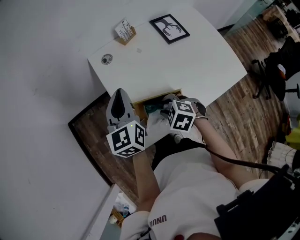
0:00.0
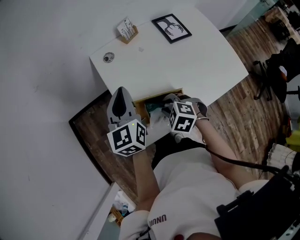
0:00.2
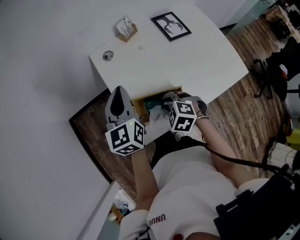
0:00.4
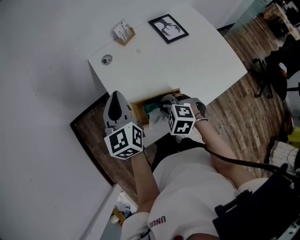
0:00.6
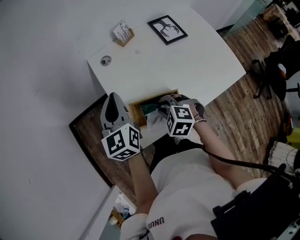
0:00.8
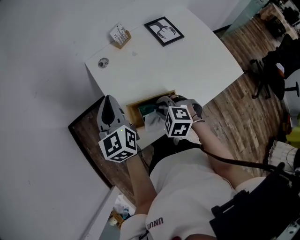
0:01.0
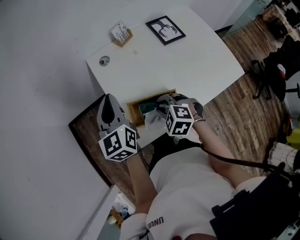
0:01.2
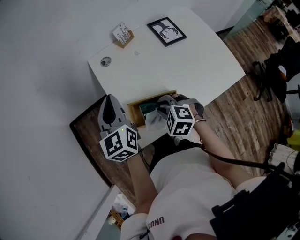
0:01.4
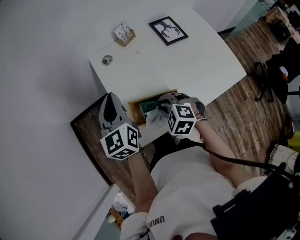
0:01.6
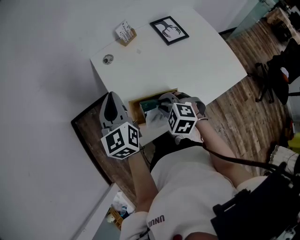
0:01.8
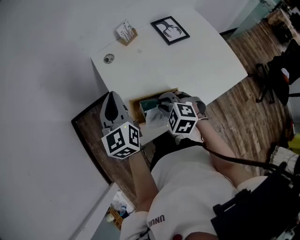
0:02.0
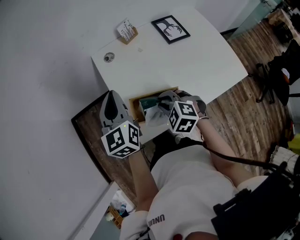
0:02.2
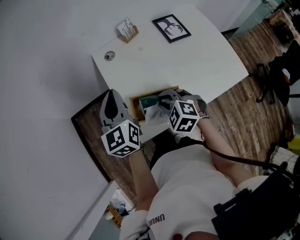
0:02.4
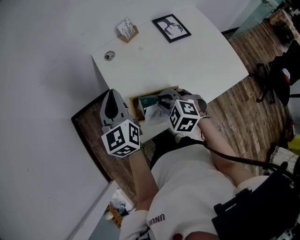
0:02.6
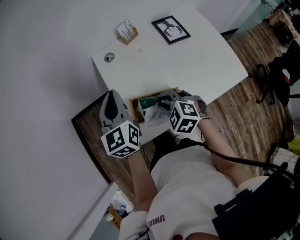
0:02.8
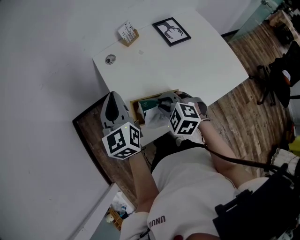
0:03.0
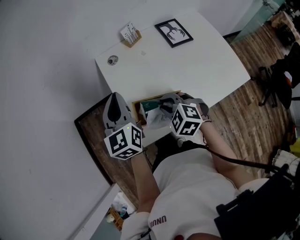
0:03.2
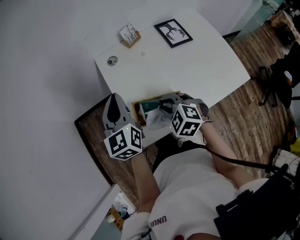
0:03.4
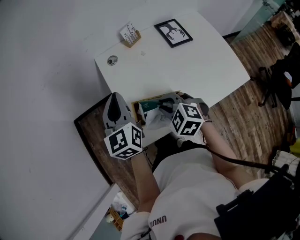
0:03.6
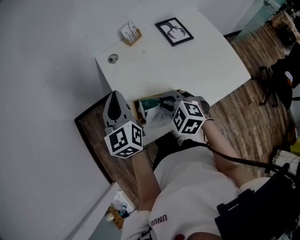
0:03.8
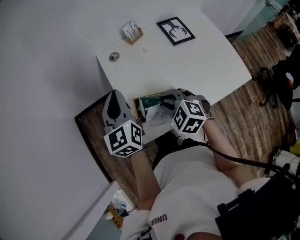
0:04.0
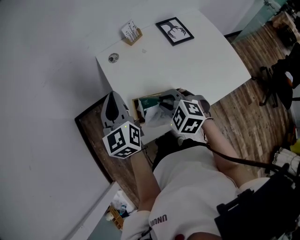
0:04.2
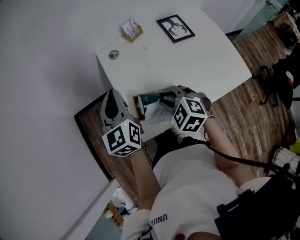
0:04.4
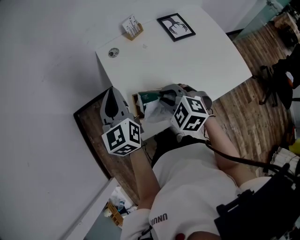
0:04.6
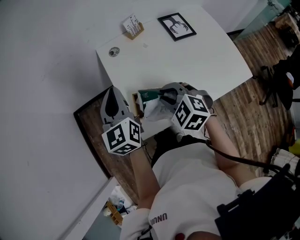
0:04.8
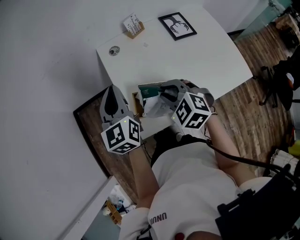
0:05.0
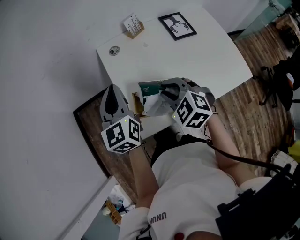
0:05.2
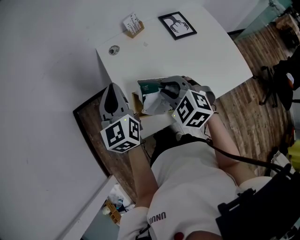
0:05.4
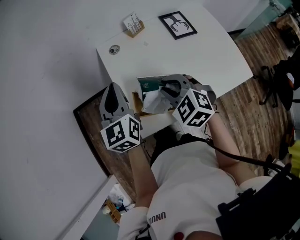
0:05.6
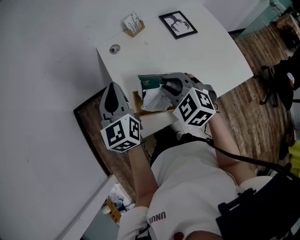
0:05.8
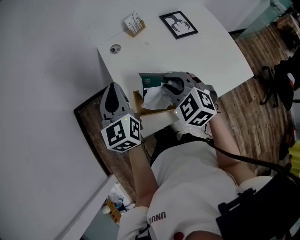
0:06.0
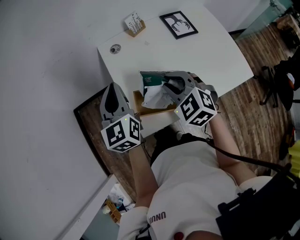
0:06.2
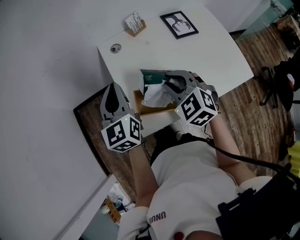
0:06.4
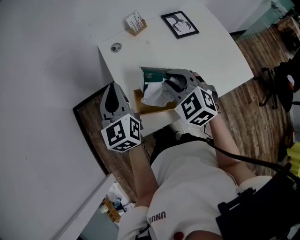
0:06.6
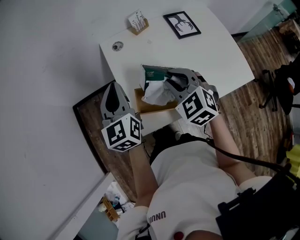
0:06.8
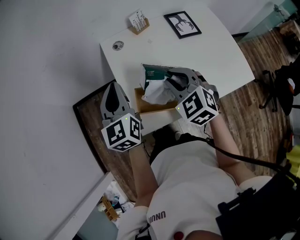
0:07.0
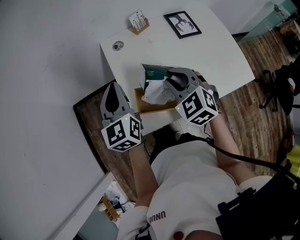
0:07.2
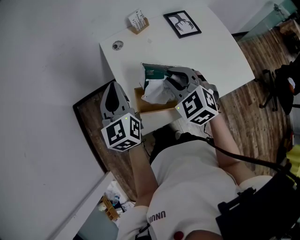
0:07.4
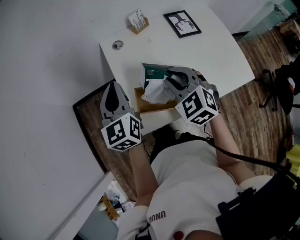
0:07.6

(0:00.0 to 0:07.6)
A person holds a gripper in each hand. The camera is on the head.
0:00.0 - 0:03.0: The grippers move only a little.
0:03.0 - 0:04.6: The grippers stay close to where they were, moving slightly.
0:04.6 - 0:06.0: The right gripper shifts by roughly 5 cm.
0:06.0 - 0:07.6: The grippers move only a little.

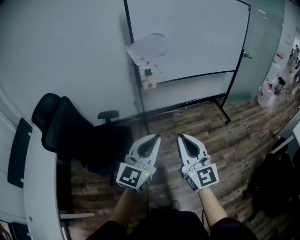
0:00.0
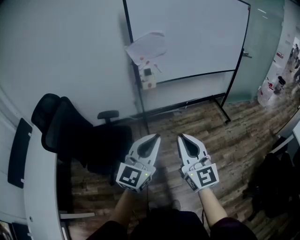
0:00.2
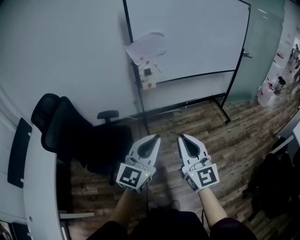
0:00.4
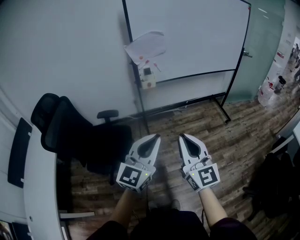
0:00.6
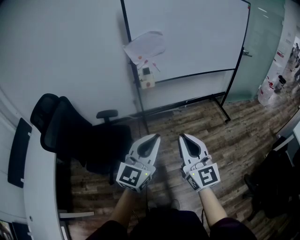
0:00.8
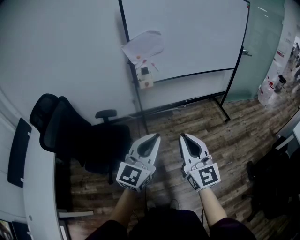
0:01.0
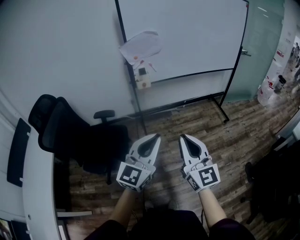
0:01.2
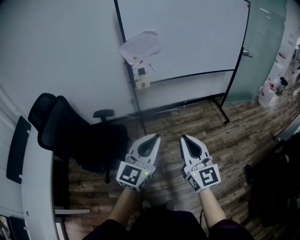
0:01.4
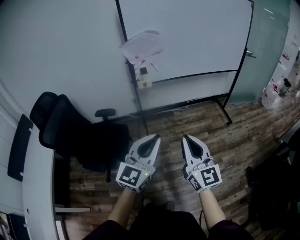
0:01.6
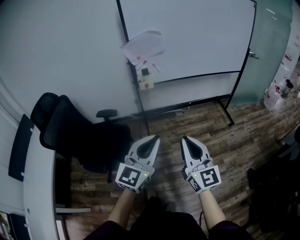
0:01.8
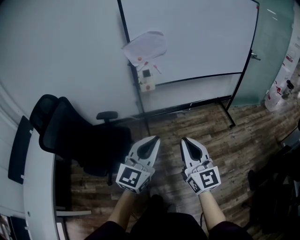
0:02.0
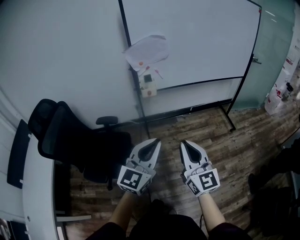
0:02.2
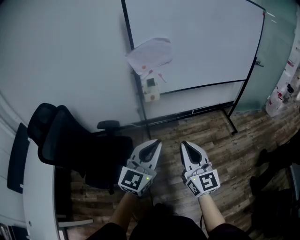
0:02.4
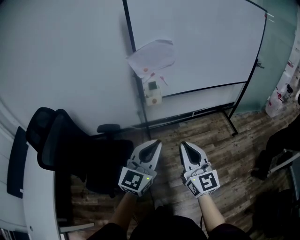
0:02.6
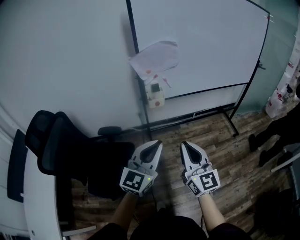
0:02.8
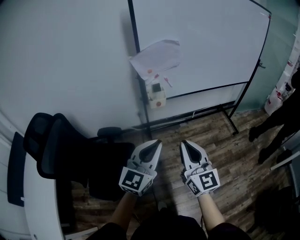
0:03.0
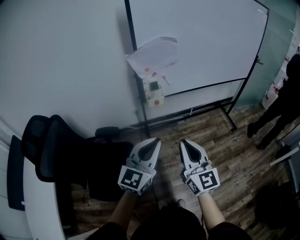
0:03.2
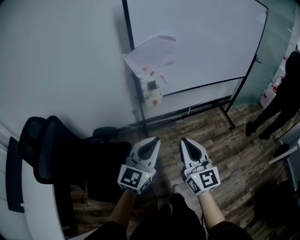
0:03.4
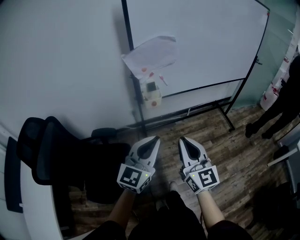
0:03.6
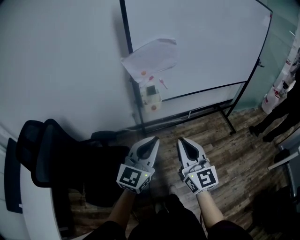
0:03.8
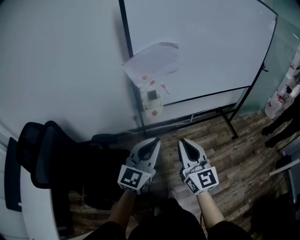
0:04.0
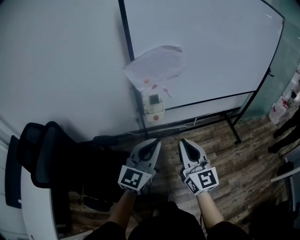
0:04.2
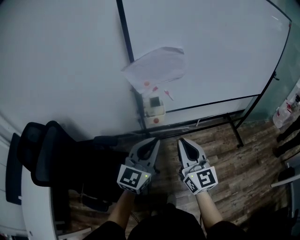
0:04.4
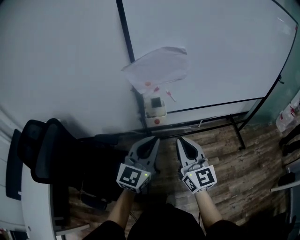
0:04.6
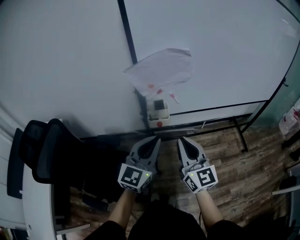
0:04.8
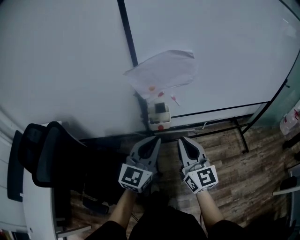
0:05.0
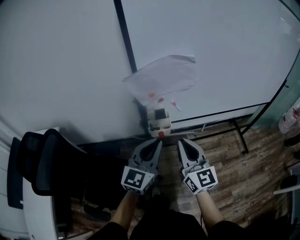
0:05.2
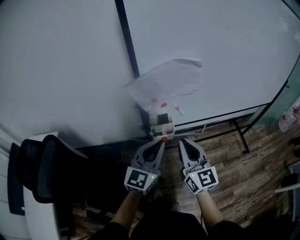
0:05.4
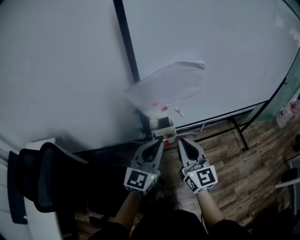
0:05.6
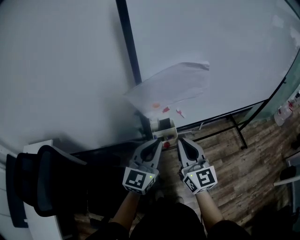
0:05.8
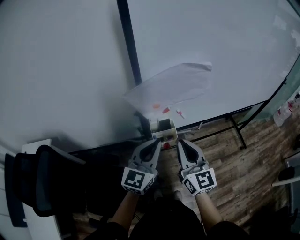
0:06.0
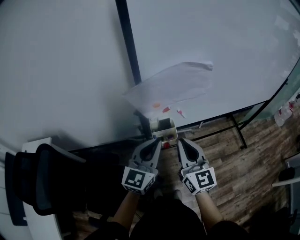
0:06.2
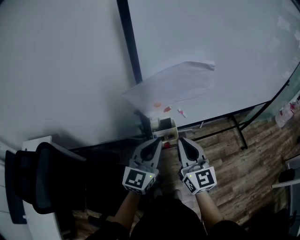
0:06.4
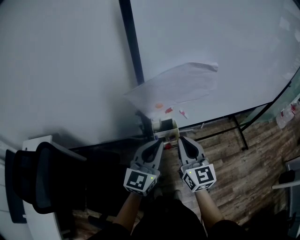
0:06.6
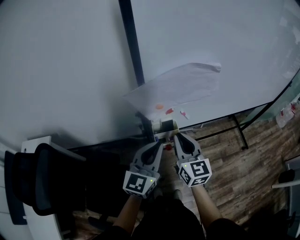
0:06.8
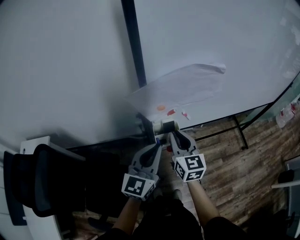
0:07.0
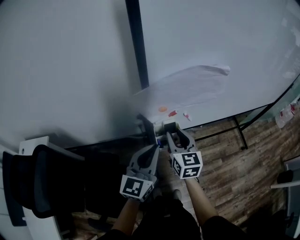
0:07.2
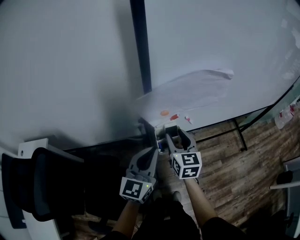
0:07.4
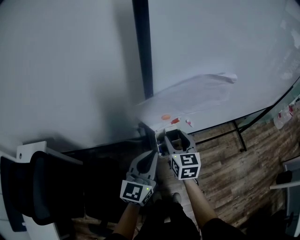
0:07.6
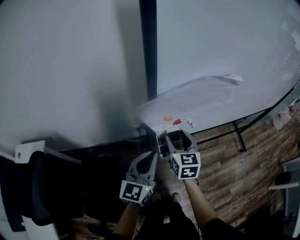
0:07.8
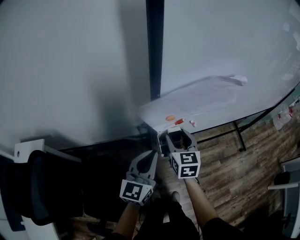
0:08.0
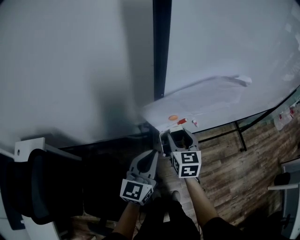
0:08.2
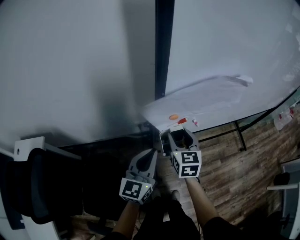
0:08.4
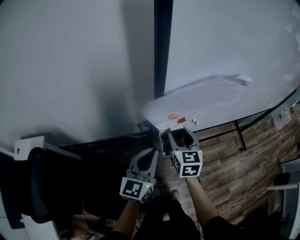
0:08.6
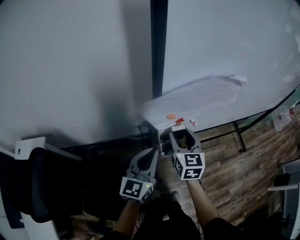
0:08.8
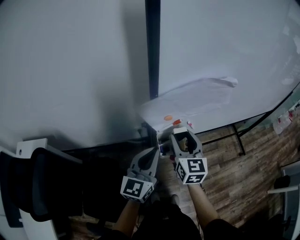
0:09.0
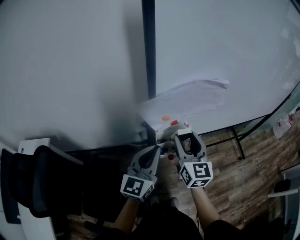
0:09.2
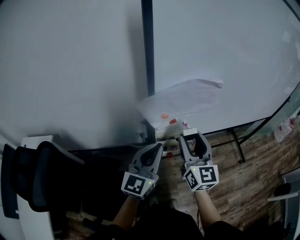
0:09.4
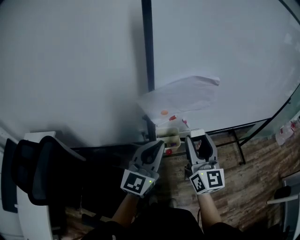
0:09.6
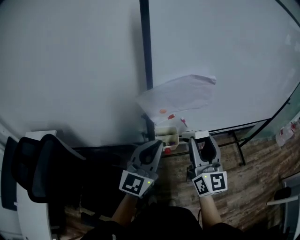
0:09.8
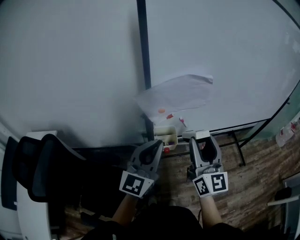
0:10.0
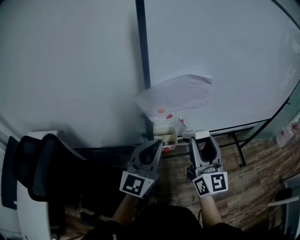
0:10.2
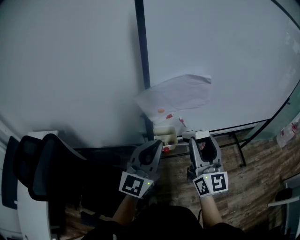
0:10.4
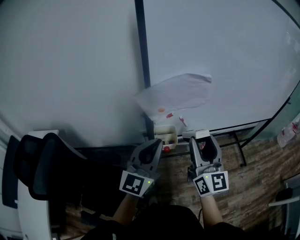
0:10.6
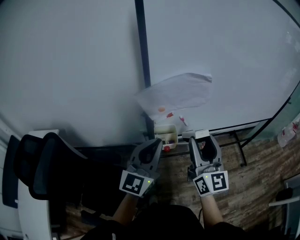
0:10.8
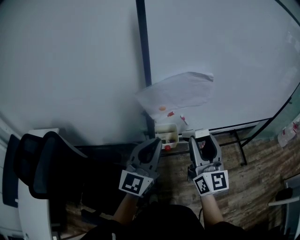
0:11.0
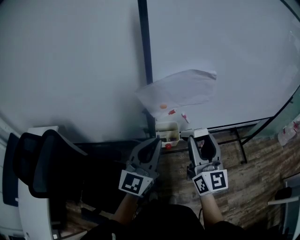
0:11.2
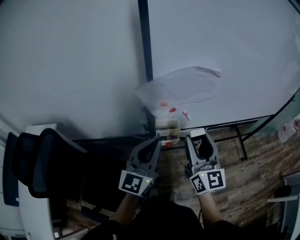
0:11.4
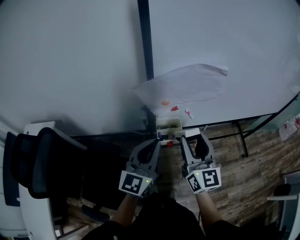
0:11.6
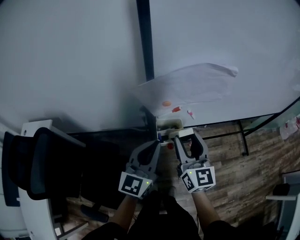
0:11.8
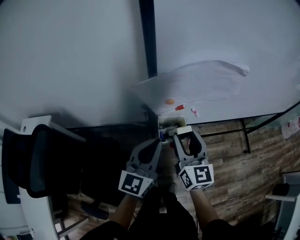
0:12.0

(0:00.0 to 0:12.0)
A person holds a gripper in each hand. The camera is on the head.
0:00.0 - 0:01.6: Both grippers travel together to the right, some 10 cm.
0:01.6 - 0:03.0: The two grippers go approximately 25 cm forward and to the left.
0:03.0 - 0:04.4: Both grippers move forward, some 20 cm.
0:04.4 - 0:06.0: Both grippers travel together forward, roughly 20 cm.
0:06.0 - 0:07.6: The left gripper changes place by about 5 cm; the right gripper moves forward, downward and to the left, some 15 cm, turns by some 20 degrees, and opens up.
0:07.6 - 0:09.0: The right gripper is displaced upward by some 5 cm.
0:09.0 - 0:10.4: Both grippers move upward, backward and to the right, some 20 cm. The right gripper turns by approximately 30 degrees.
0:10.4 - 0:12.0: The left gripper travels downward and forward by approximately 15 cm. The right gripper moves downward, to the left and forward, about 20 cm.

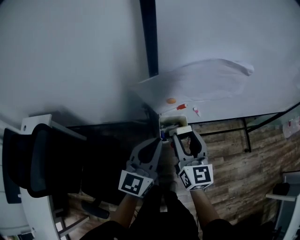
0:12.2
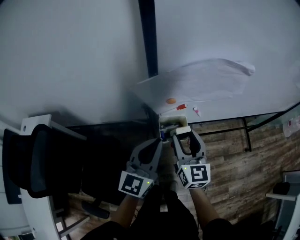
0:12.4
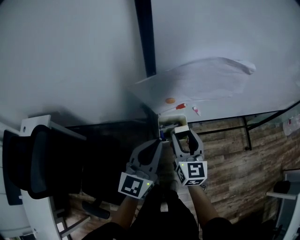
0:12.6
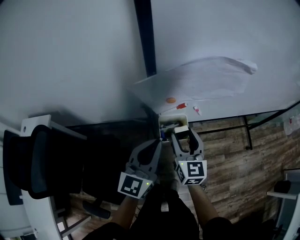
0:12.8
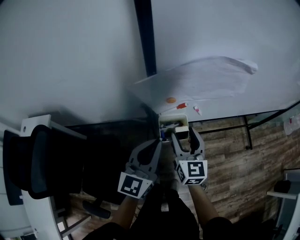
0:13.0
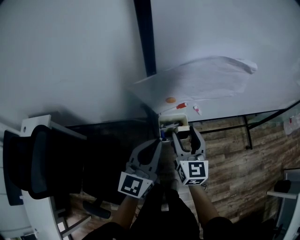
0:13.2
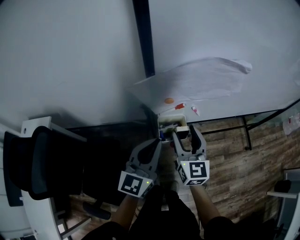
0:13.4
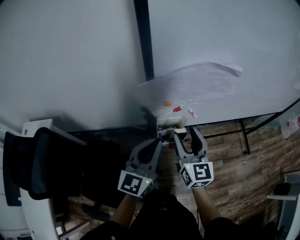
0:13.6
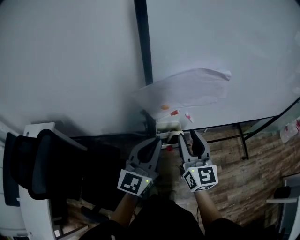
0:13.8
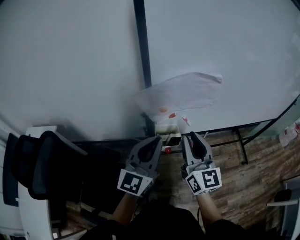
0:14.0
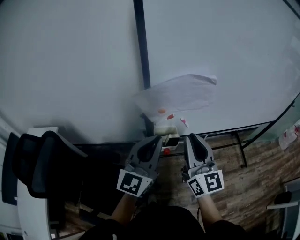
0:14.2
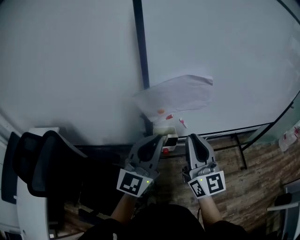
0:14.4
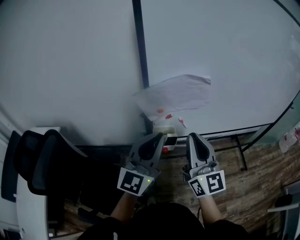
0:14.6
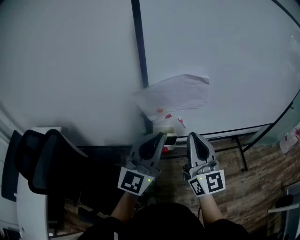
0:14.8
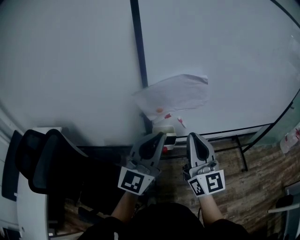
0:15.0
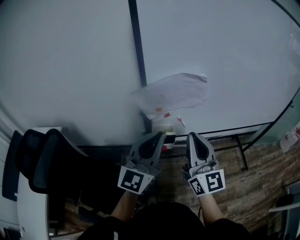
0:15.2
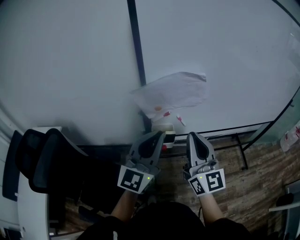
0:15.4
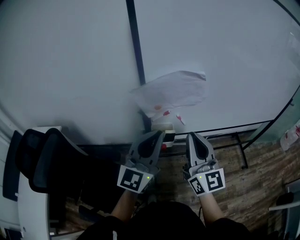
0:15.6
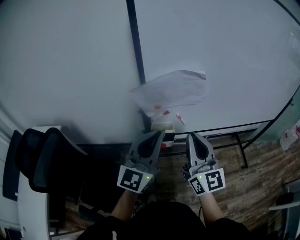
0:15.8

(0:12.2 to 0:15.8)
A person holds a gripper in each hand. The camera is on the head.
0:12.2 - 0:14.0: The two grippers go some 10 cm upward. The right gripper closes.
0:14.0 - 0:15.8: The right gripper moves backward and upward, approximately 10 cm, and closes. Meanwhile the left gripper goes approximately 5 cm upward.

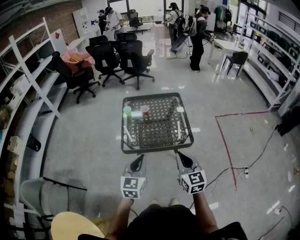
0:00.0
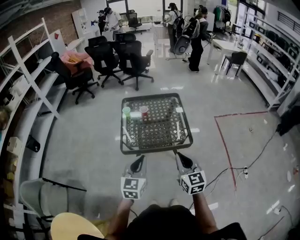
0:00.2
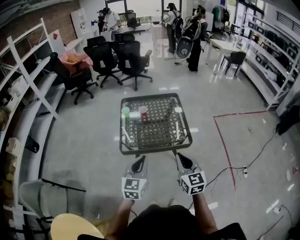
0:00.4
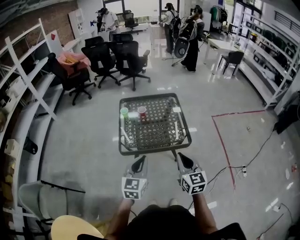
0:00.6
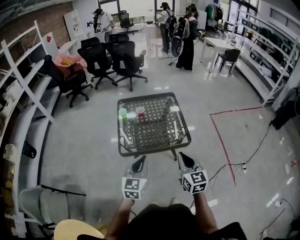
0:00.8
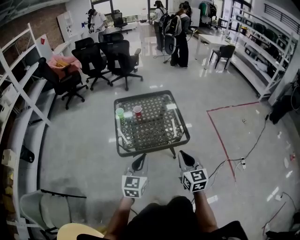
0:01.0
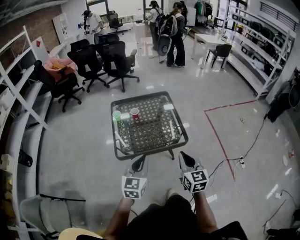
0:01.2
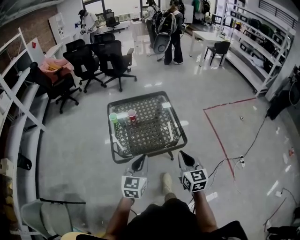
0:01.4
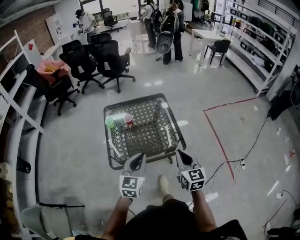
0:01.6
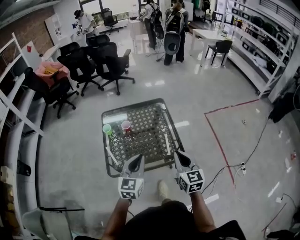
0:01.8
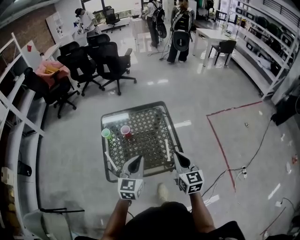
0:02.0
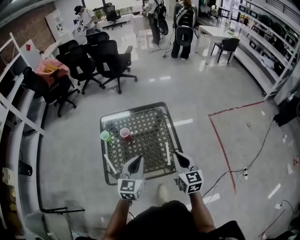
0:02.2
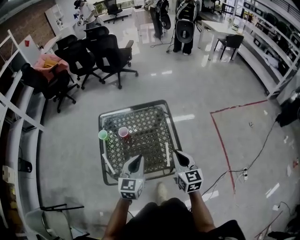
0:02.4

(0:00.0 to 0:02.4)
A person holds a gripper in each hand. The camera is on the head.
0:00.0 - 0:01.2: The grippers stay close to where they were, moving slightly.
0:01.2 - 0:02.4: Both grippers travel together forward, roughly 30 cm.
